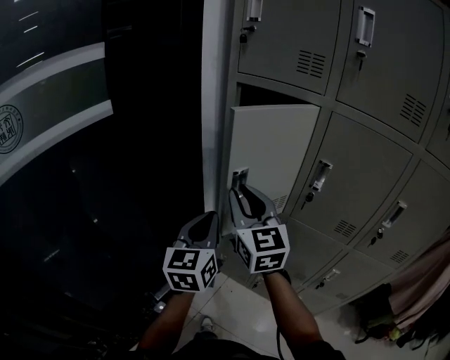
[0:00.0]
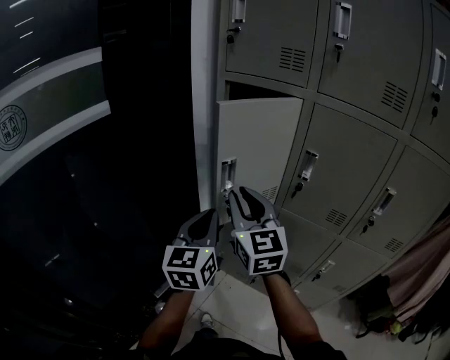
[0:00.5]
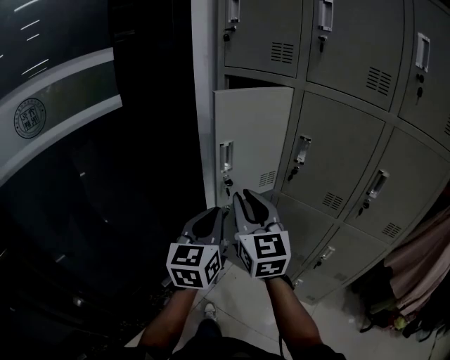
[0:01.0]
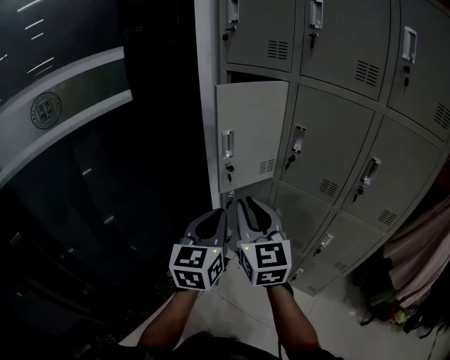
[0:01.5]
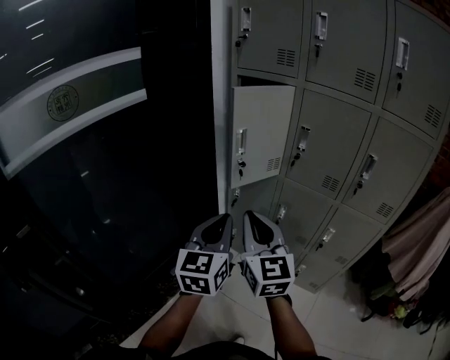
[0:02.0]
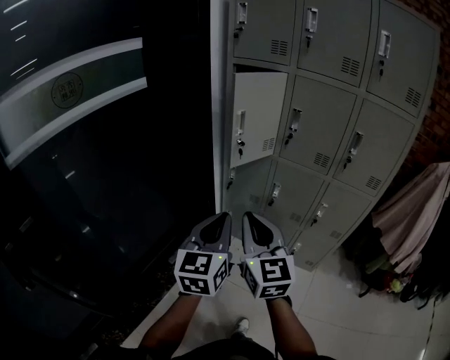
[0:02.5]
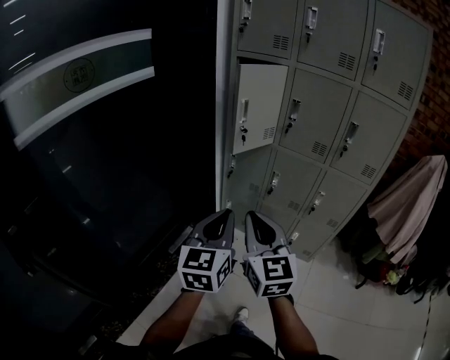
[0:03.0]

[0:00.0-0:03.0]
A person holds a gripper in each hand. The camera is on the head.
0:00.0 to 0:01.5: Both grippers travel together backward, about 20 cm.
0:01.5 to 0:03.0: The two grippers go roughly 25 cm backward.

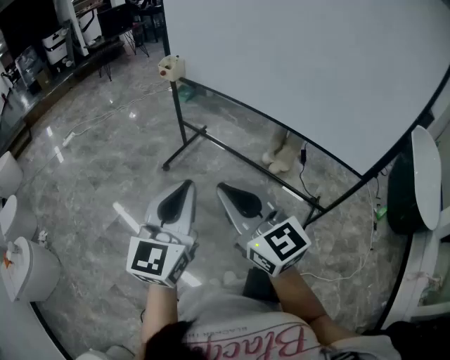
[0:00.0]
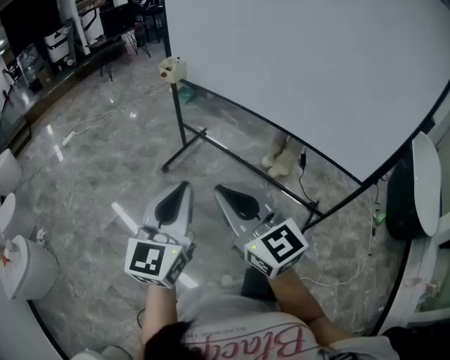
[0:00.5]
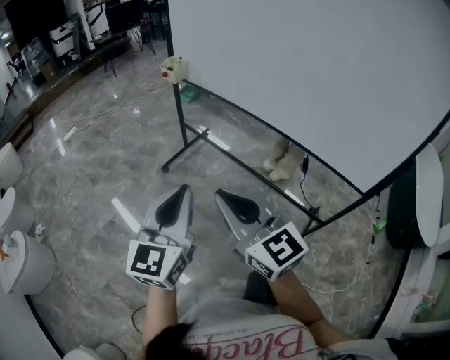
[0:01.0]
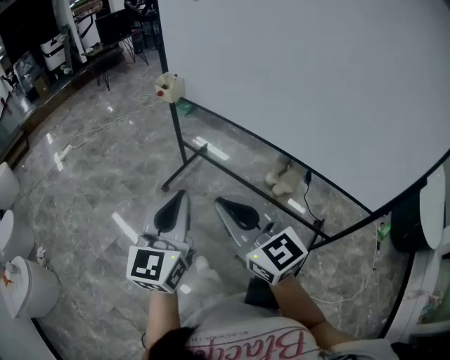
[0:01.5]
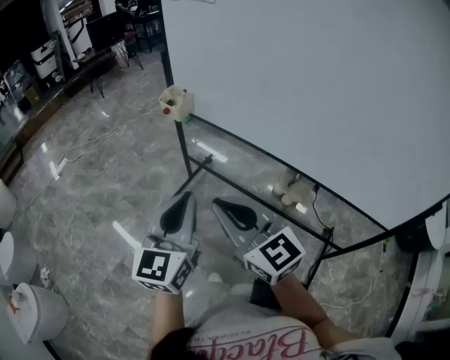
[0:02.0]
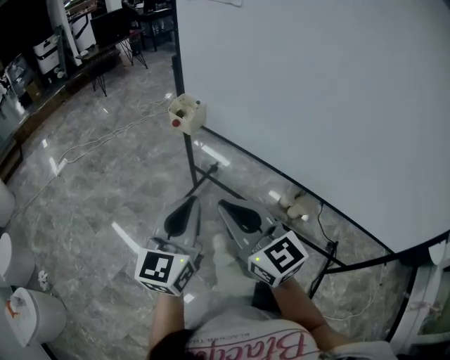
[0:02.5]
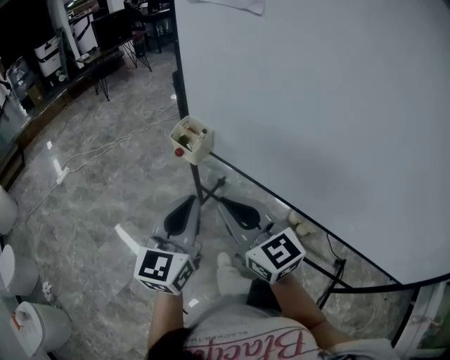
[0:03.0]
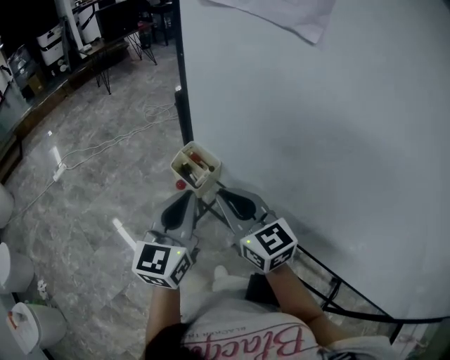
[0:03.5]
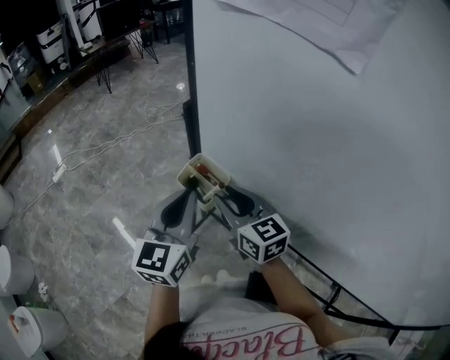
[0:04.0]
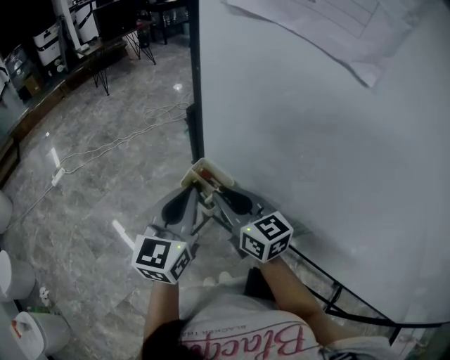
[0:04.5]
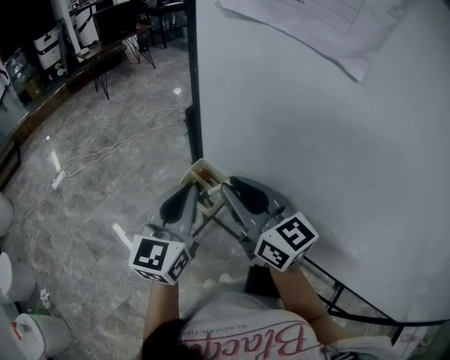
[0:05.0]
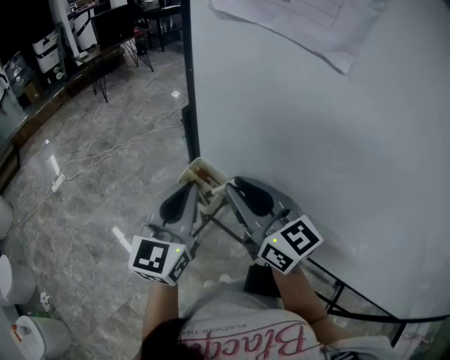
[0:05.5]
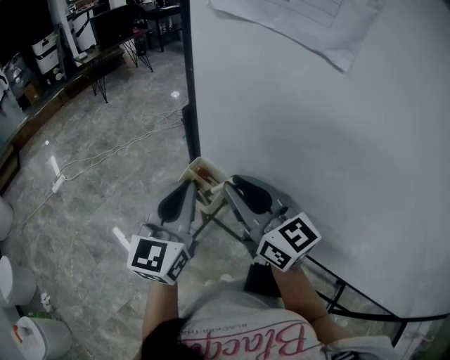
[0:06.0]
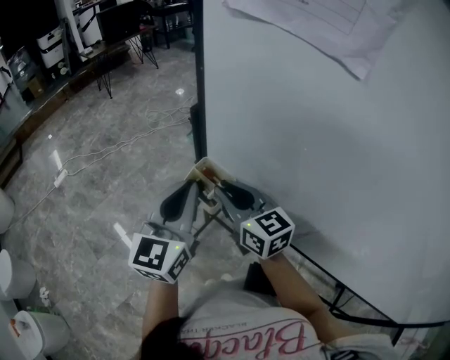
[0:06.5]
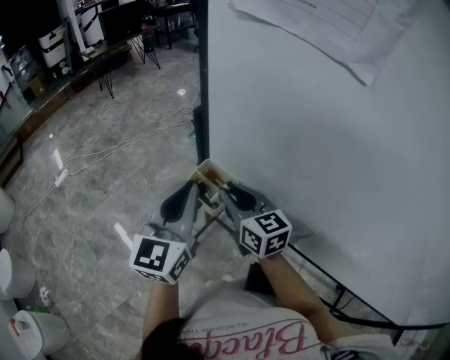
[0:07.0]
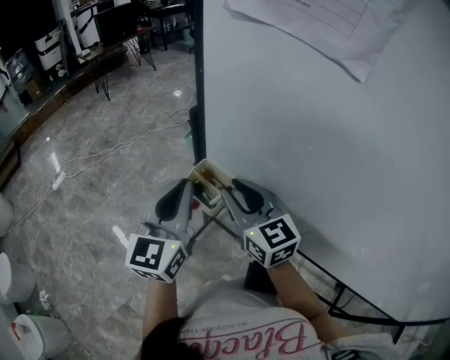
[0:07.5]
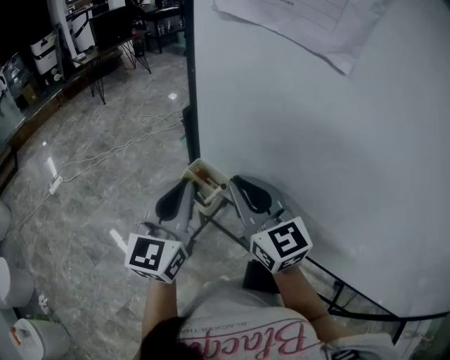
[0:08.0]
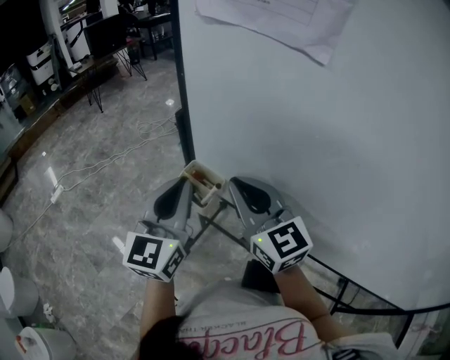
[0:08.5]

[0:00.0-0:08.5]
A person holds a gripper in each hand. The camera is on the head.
0:00.0 to 0:02.0: Both grippers move forward, approximately 20 cm.
0:02.0 to 0:04.0: Both grippers travel together forward, about 35 cm. The right gripper opens its fingers.
0:04.0 to 0:06.5: The right gripper travels upward and back again, some 10 cm each way.
0:06.5 to 0:08.5: The right gripper shifts roughly 10 cm upward.

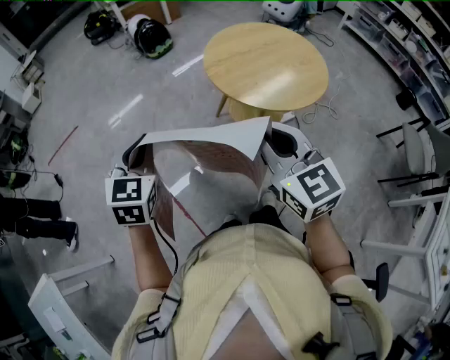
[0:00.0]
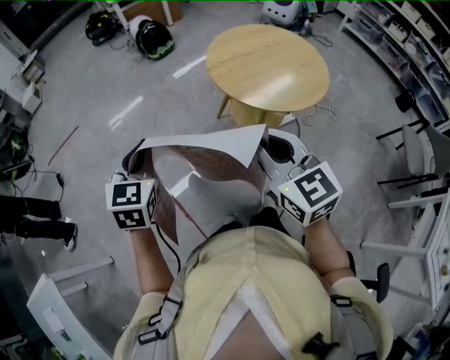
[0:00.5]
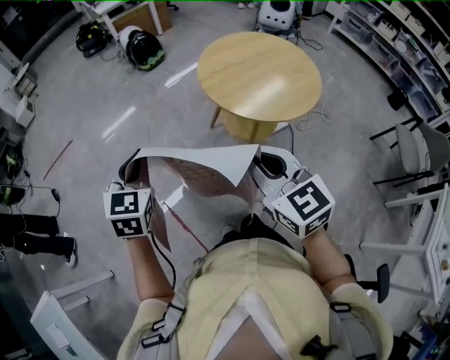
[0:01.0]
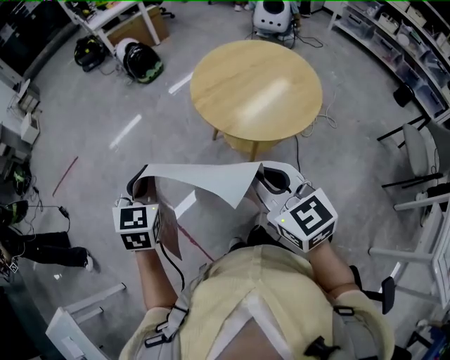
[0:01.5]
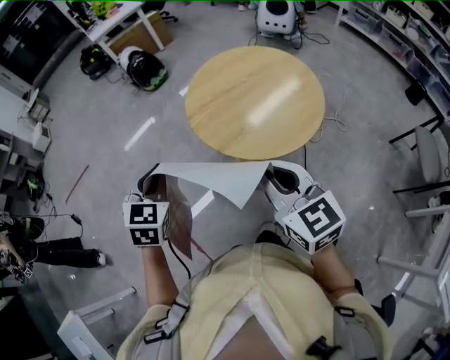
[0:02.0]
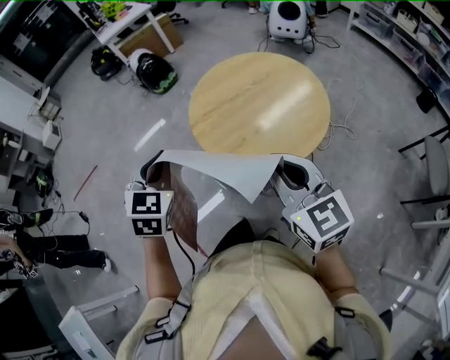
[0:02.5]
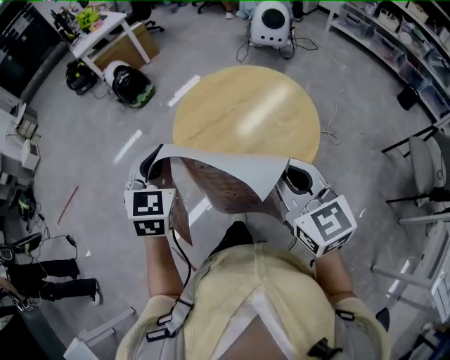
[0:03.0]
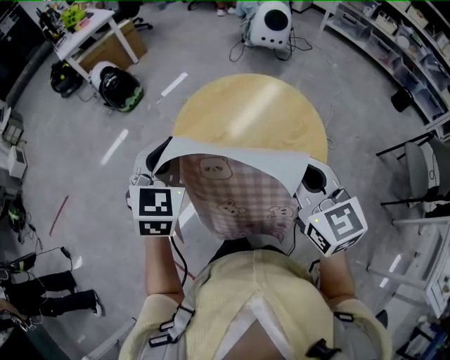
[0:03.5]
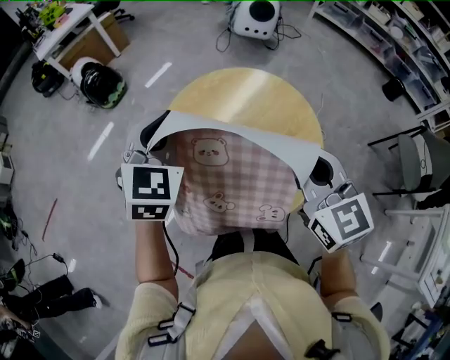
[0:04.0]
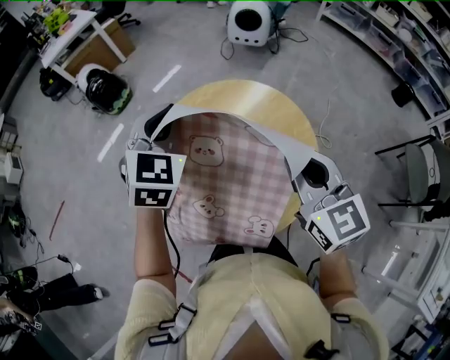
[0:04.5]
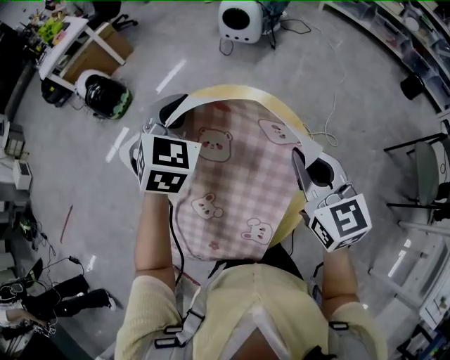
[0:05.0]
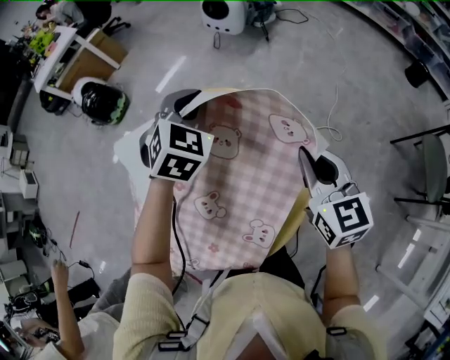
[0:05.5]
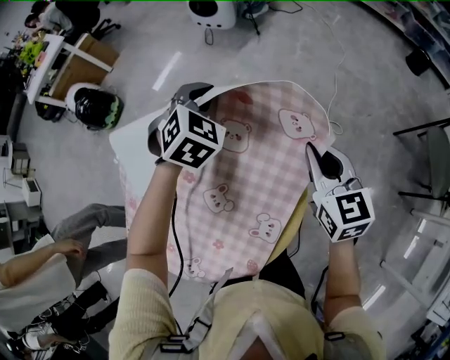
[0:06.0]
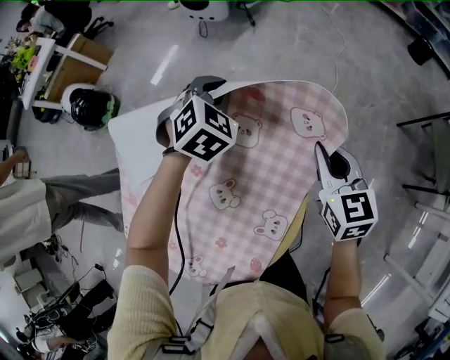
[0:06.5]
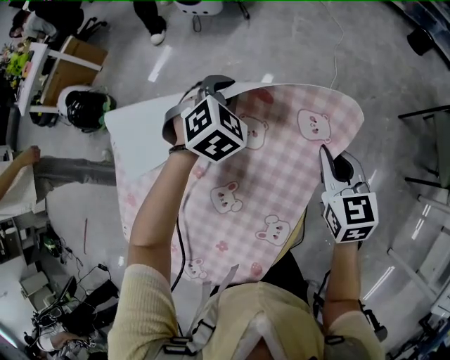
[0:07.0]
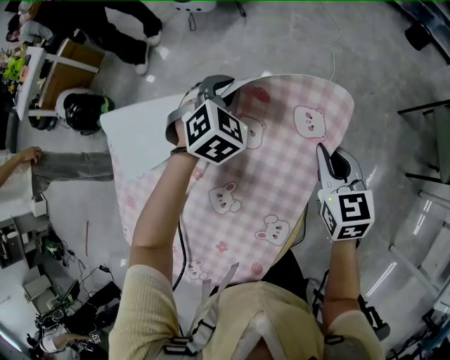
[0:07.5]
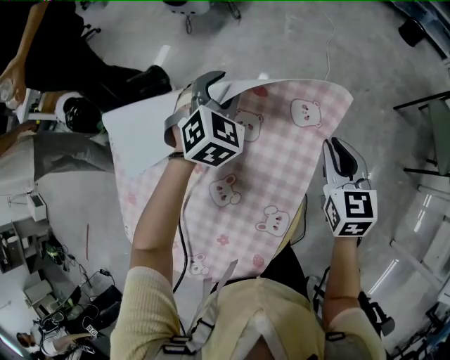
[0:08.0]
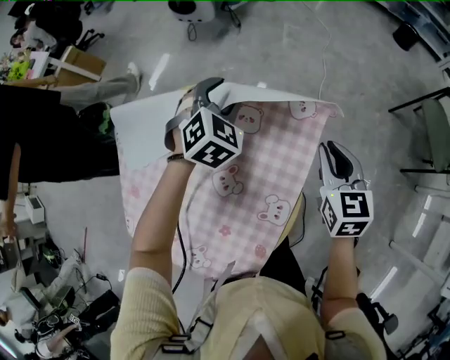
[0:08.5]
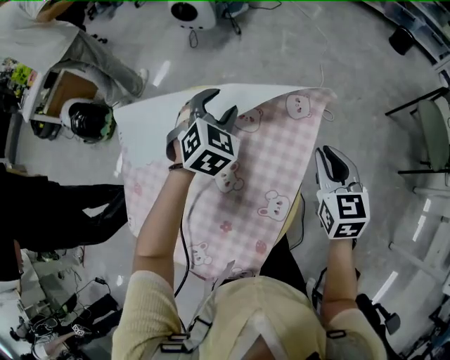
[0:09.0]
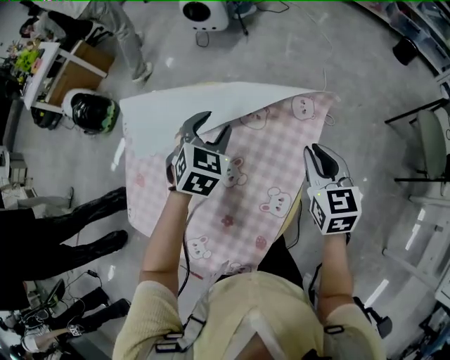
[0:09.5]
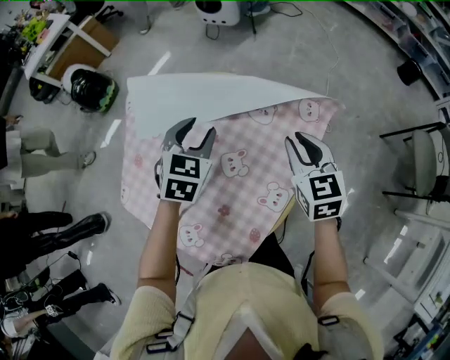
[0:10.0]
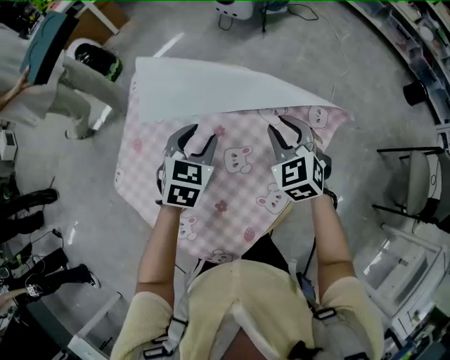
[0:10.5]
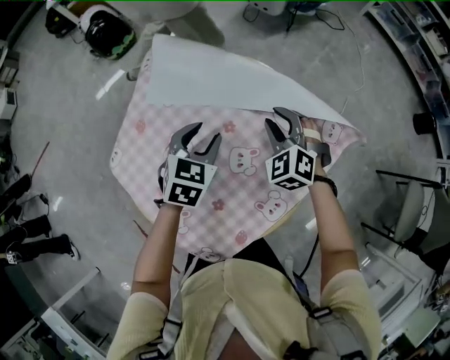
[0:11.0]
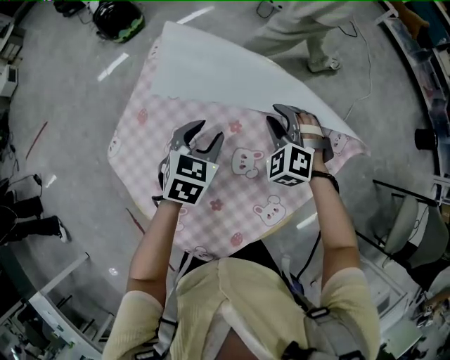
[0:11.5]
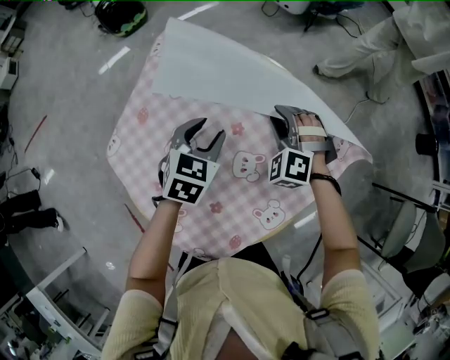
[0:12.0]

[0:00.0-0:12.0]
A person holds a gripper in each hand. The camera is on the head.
0:00.0 to 0:02.0: Both grippers move to the right and forward, some 15 cm.
0:02.0 to 0:04.0: Both grippers move forward and to the right, approximately 35 cm. The right gripper turns by approximately 20 degrees. The left gripper swivels some 20 degrees.
0:04.0 to 0:06.0: Both grippers travel together to the right, forward and downward, roughly 40 cm. The left gripper rotates roughly 30 degrees.
0:06.0 to 0:08.0: Both grippers travel together to the right and downward, roughly 10 cm. The left gripper opens.
0:08.0 to 0:10.0: The right gripper shifts approximately 15 cm to the left. Meanwhile the left gripper travels backward and to the left by some 20 cm, and changes its angle by some 40 degrees.
0:10.0 to 0:12.0: The left gripper travels downward and to the left by some 10 cm, and changes its angle by some 20 degrees. Meanwhile the right gripper goes roughly 20 cm to the left, downward and forward, and rolls counterclockwise, seen from behind, by approximately 80 degrees.

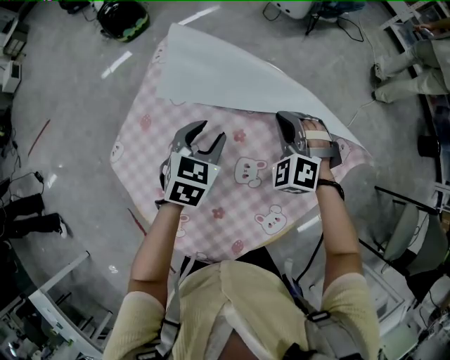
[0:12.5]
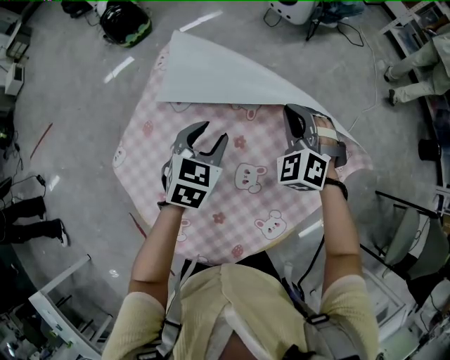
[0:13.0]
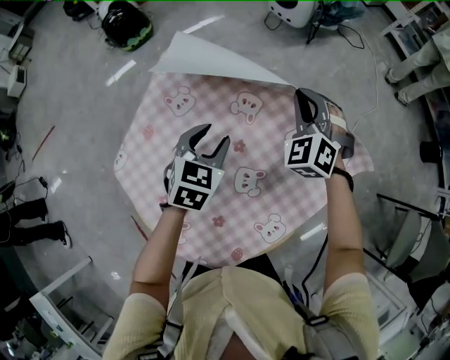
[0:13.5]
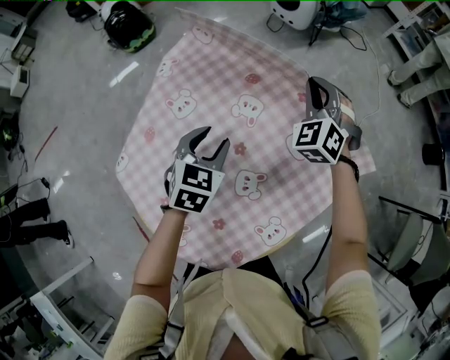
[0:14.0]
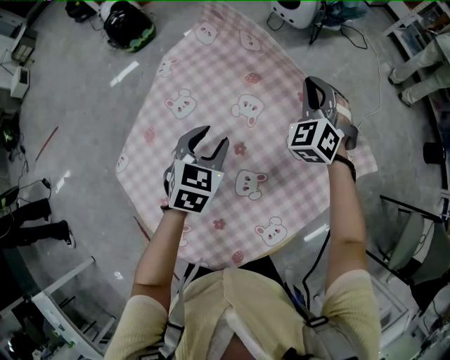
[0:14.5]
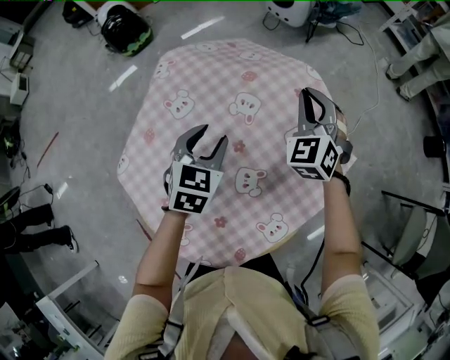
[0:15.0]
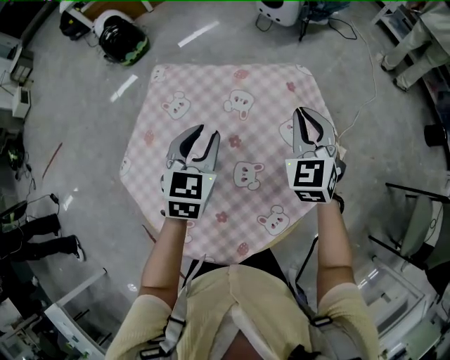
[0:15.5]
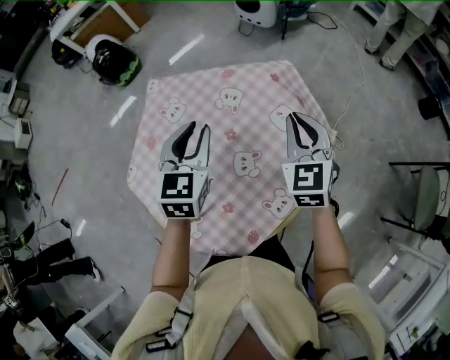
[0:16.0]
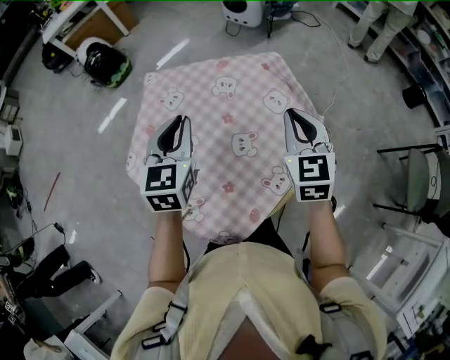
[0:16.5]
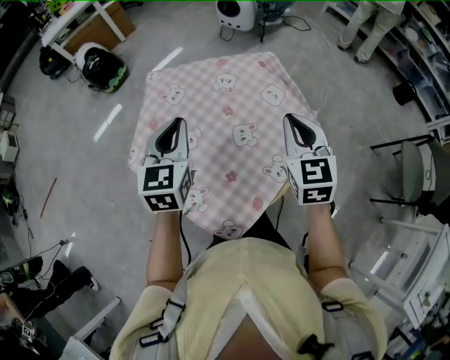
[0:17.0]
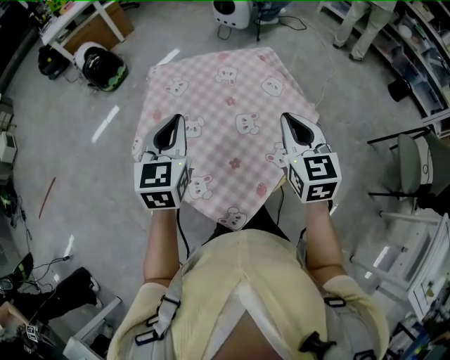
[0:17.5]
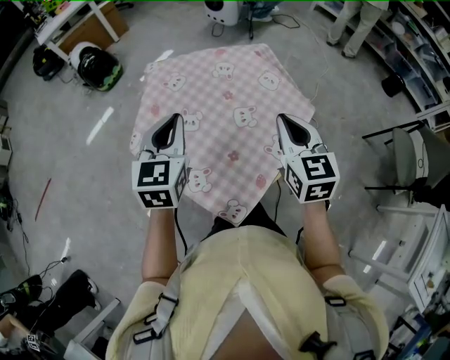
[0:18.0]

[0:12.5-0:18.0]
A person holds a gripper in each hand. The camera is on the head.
0:12.5 to 0:14.5: The right gripper travels forward and upward by some 15 cm, and turns by roughly 20 degrees.
0:14.5 to 0:16.0: The left gripper is displaced upward by some 10 cm, and closes its fingers. Meanwhile the right gripper goes approximately 20 cm backward, and rotates about 40 degrees.
0:16.0 to 0:18.0: The left gripper moves backward, to the left and upward, some 20 cm, and closes, while the right gripper moves backward, some 20 cm.
